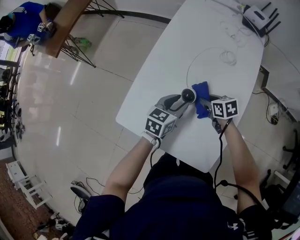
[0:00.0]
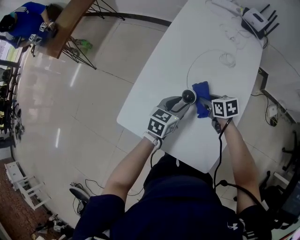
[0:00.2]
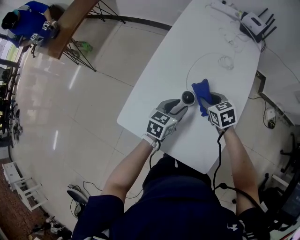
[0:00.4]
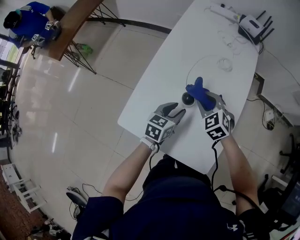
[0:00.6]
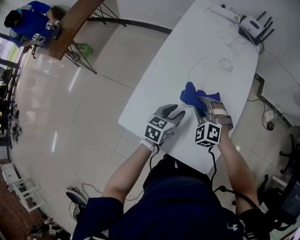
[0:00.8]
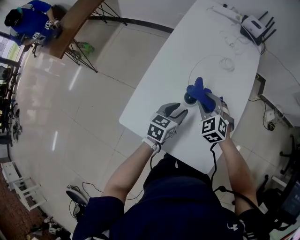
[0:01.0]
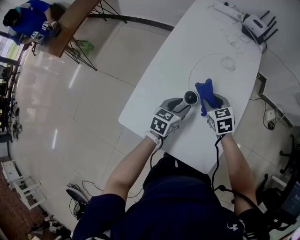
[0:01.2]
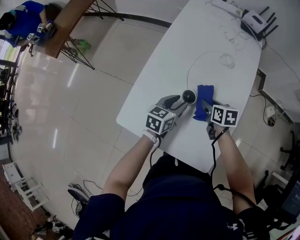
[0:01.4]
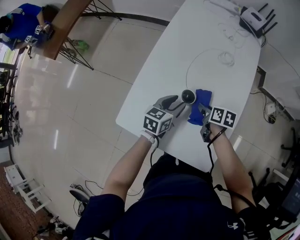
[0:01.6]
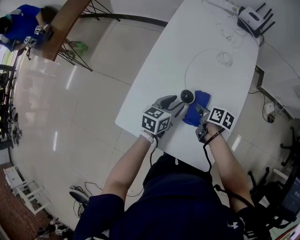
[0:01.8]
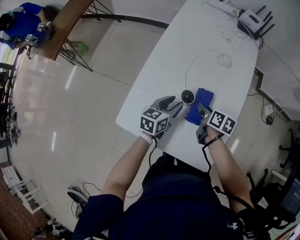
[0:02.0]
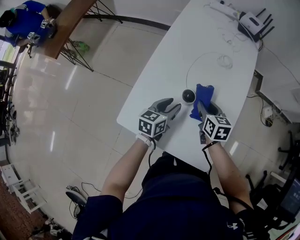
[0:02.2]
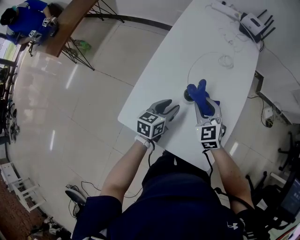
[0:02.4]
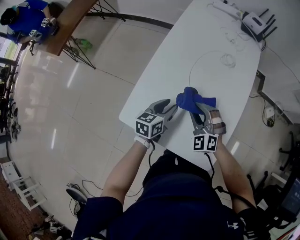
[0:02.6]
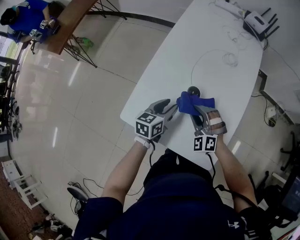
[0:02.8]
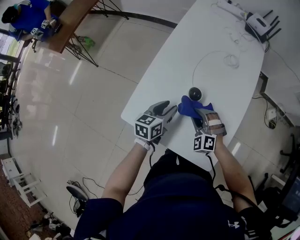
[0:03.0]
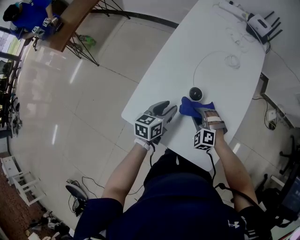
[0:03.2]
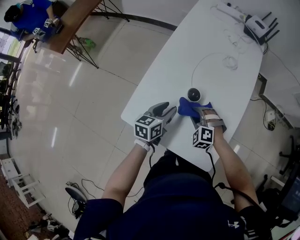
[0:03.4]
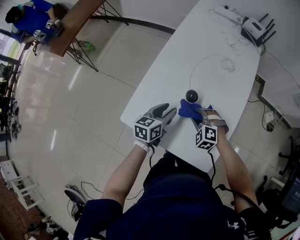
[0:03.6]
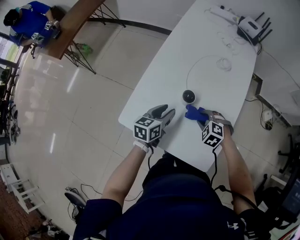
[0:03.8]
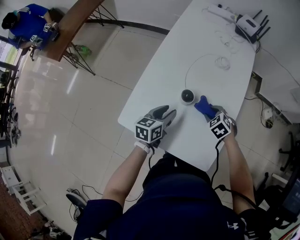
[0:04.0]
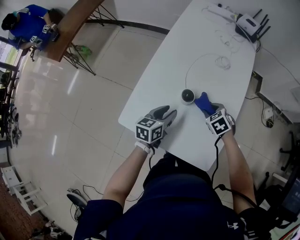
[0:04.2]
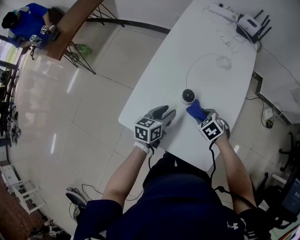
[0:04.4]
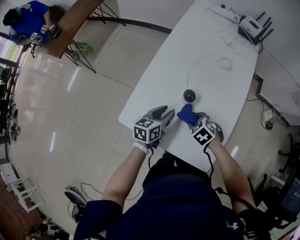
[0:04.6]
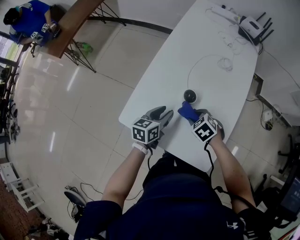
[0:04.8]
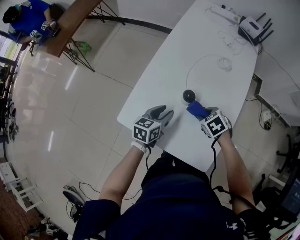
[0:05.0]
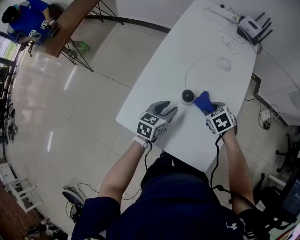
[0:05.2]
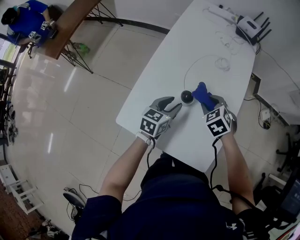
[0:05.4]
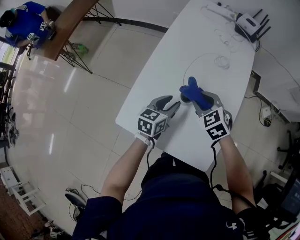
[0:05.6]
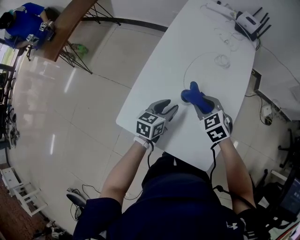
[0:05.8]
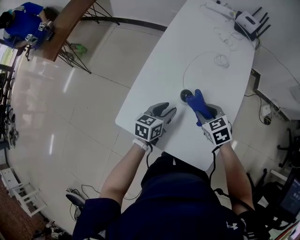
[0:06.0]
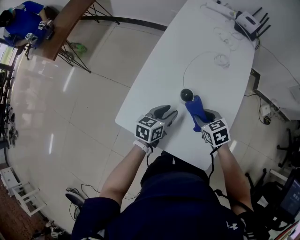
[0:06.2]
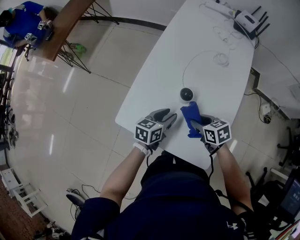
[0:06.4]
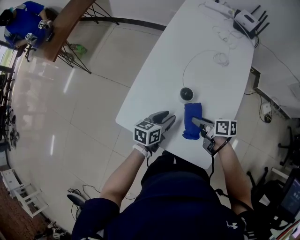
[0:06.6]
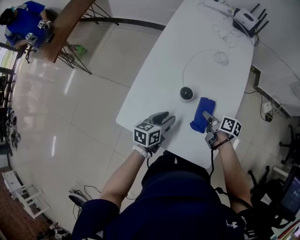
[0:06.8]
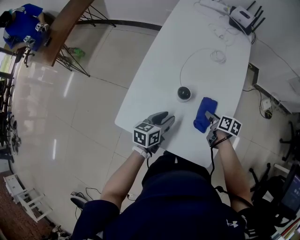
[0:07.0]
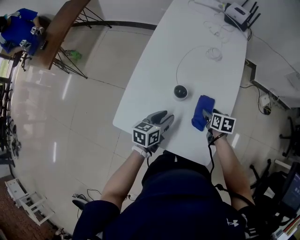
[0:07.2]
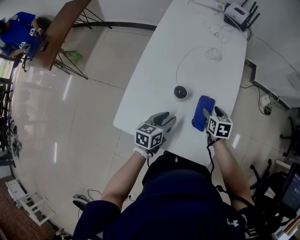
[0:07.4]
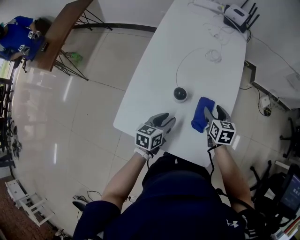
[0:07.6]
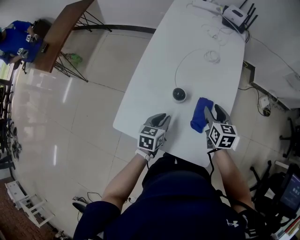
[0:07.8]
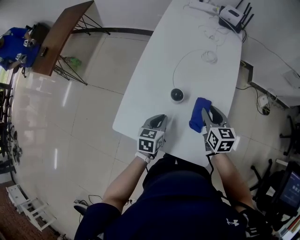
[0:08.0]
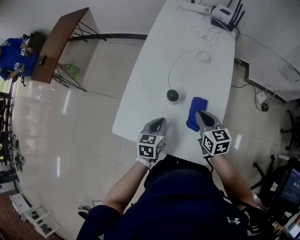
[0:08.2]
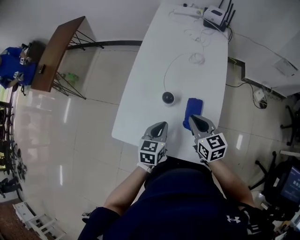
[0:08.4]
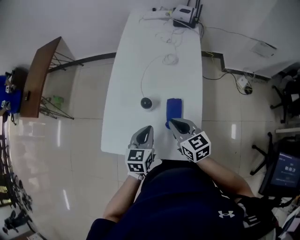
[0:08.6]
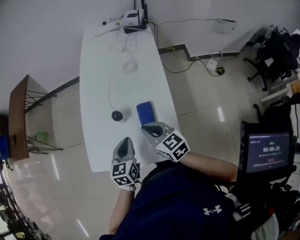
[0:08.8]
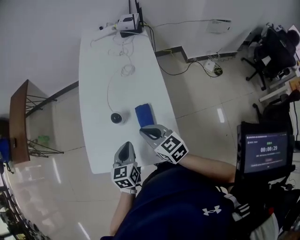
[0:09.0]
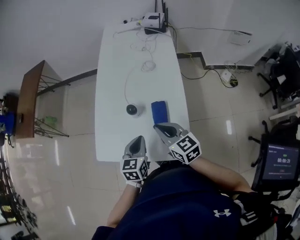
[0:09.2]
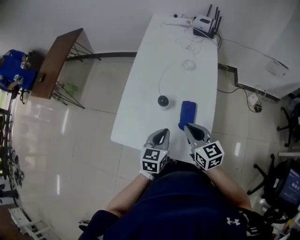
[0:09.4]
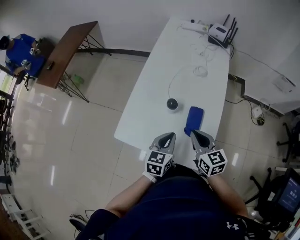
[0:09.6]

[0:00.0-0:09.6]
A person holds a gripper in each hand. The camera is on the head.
0:00.0 to 0:01.6: The right gripper moves about 10 cm upward and comes back, and rotates roughly 30 degrees.
0:01.6 to 0:03.2: The right gripper travels to the left and backward by about 10 cm, travels upward and back again, some 10 cm each way, and twists some 110 degrees counterclockwise, seen from behind. Meanwhile the left gripper goes some 5 cm to the left.
0:03.2 to 0:04.8: The right gripper reaches roughly 10 cm to the right, then returns, and swivels some 40 degrees.
0:04.8 to 0:06.4: The right gripper moves some 10 cm upward and comes back, and swivels approximately 40 degrees.
0:06.4 to 0:08.0: The right gripper changes place by approximately 10 cm, turns by roughly 40 degrees, and opens, then closes once more; the left gripper closes its fingers.
0:08.0 to 0:09.6: The left gripper travels upward, backward and to the right by roughly 10 cm, while the right gripper moves backward and upward, some 10 cm, and closes its fingers.

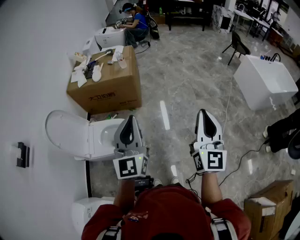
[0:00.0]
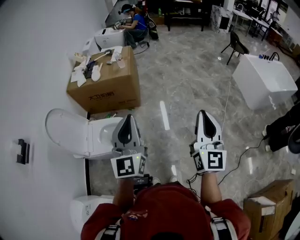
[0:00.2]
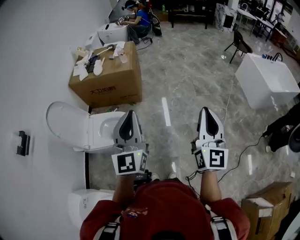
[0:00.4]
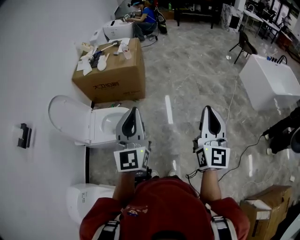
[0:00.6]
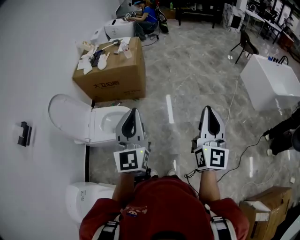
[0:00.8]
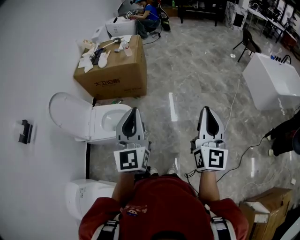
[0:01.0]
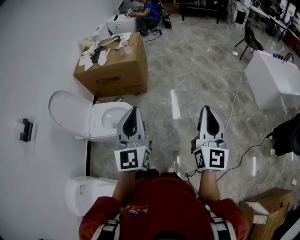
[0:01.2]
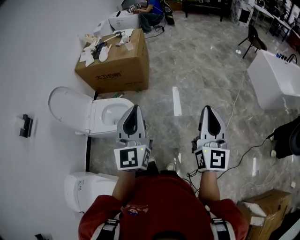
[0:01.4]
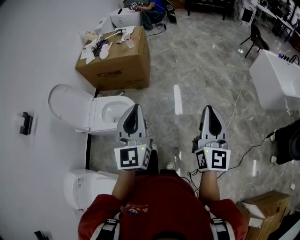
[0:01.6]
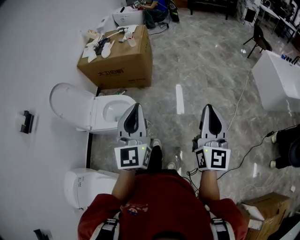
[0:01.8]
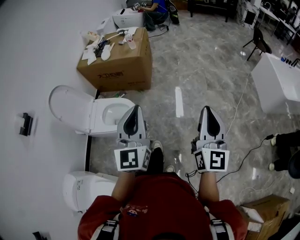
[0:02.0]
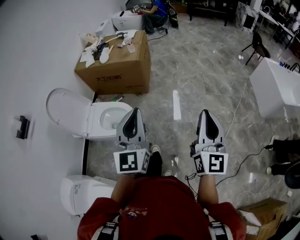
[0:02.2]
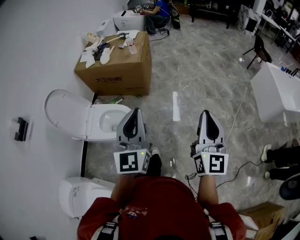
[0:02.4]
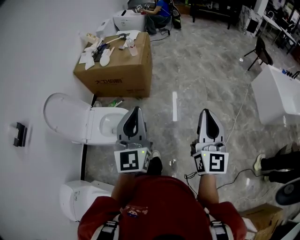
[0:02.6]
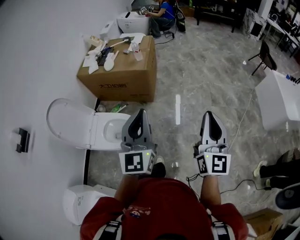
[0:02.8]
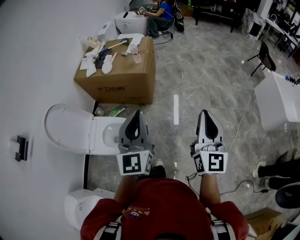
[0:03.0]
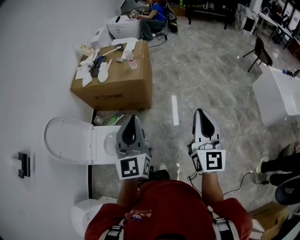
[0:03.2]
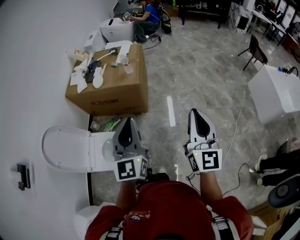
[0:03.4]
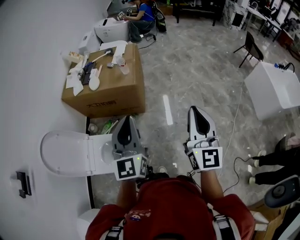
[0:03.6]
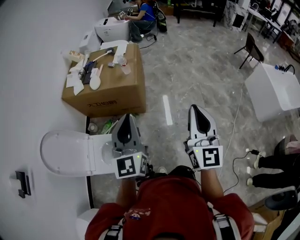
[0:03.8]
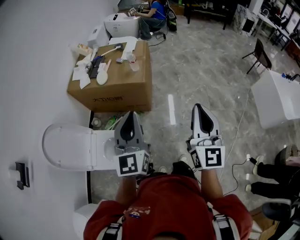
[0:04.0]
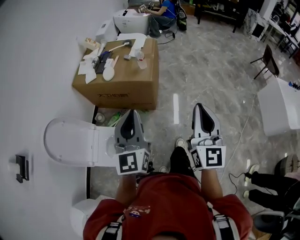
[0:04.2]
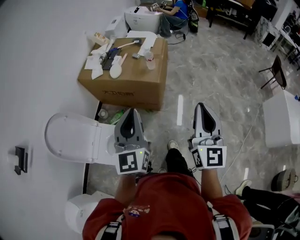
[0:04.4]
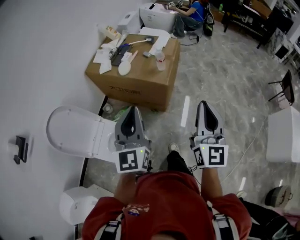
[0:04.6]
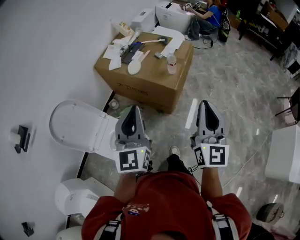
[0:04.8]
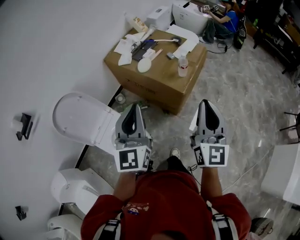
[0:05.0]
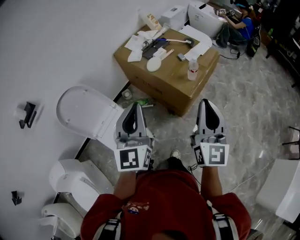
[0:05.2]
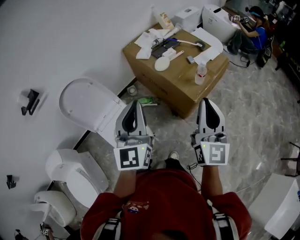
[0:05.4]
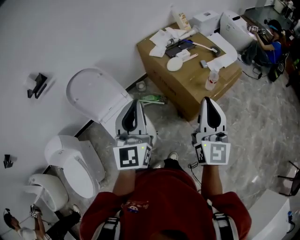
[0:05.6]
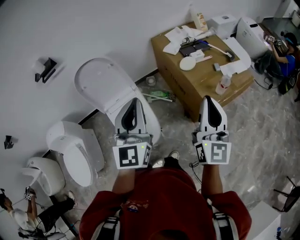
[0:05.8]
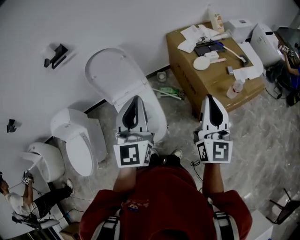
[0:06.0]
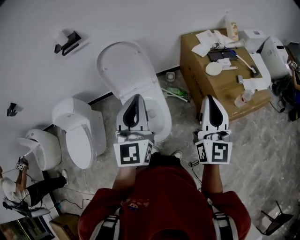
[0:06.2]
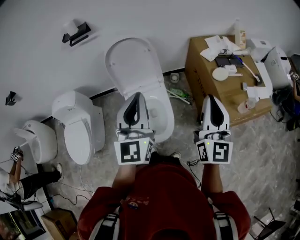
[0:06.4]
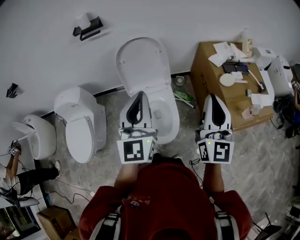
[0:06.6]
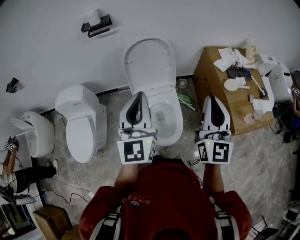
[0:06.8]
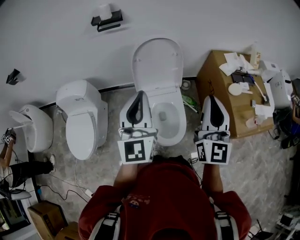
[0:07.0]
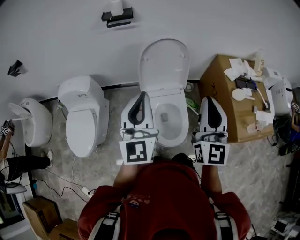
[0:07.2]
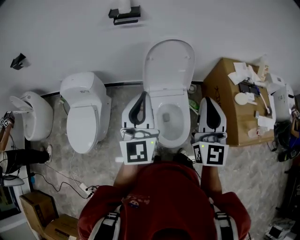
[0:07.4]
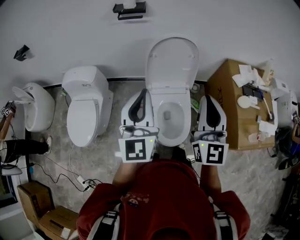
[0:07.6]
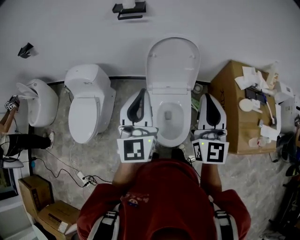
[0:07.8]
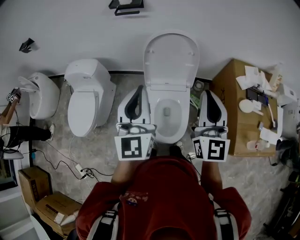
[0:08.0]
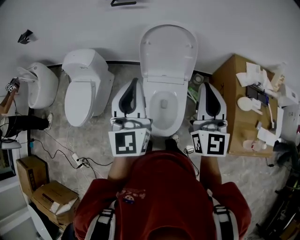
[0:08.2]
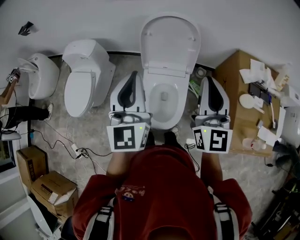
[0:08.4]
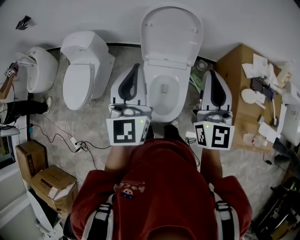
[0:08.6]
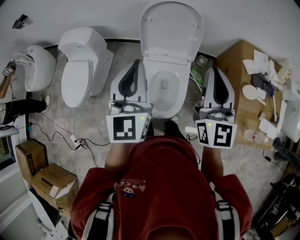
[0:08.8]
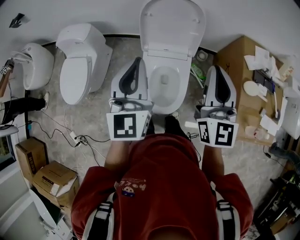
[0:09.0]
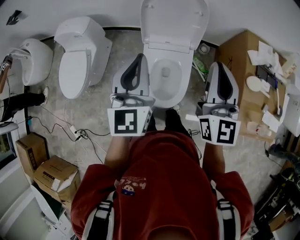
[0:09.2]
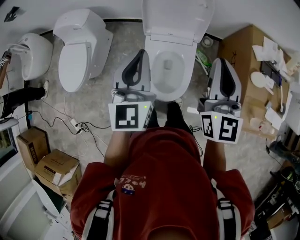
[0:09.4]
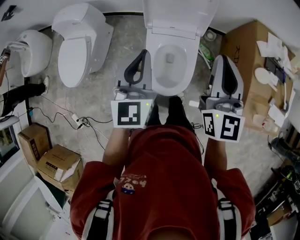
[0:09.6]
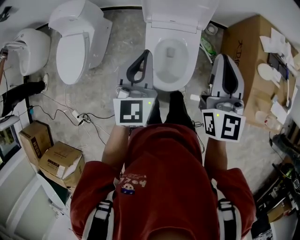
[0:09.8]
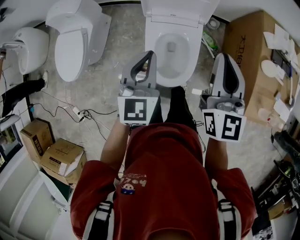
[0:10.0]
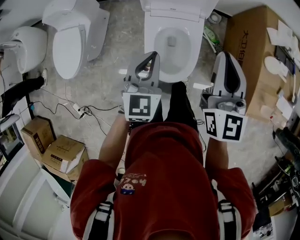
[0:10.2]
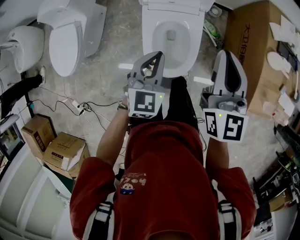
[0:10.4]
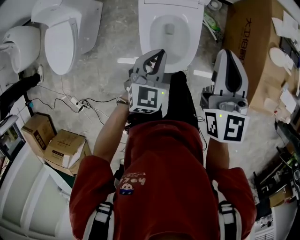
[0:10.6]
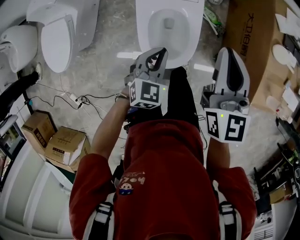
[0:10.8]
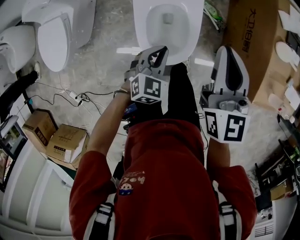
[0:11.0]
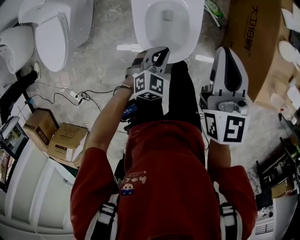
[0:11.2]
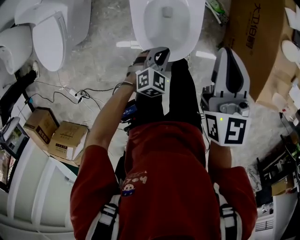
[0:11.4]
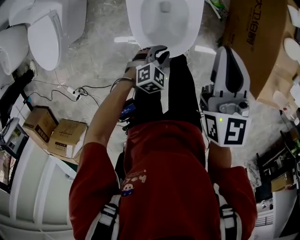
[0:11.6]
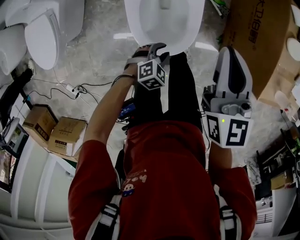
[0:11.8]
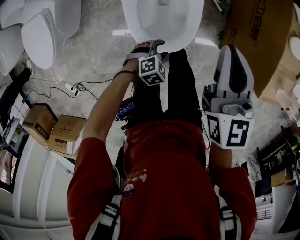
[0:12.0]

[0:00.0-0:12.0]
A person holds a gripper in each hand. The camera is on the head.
0:00.0 to 0:01.6: Both grippers move to the right, about 10 cm.
0:01.6 to 0:03.0: Both grippers move forward and to the left, about 25 cm.
0:03.0 to 0:04.4: Both grippers move forward and to the left, some 20 cm.
0:04.4 to 0:06.0: The right gripper moves roughly 30 cm, and rotates approximately 50 degrees, while the left gripper shifts by some 15 cm, and turns by approximately 50 degrees.
0:06.0 to 0:07.6: The right gripper moves roughly 35 cm, and changes its angle by approximately 30 degrees. The left gripper changes place by about 30 cm, and swivels approximately 20 degrees.
0:07.6 to 0:09.0: Both grippers travel together to the right, roughly 10 cm.
0:09.0 to 0:10.4: The right gripper shifts approximately 15 cm downward. The left gripper shifts about 25 cm downward, and turns by roughly 40 degrees.
0:10.4 to 0:12.0: The left gripper moves downward, some 35 cm, tips its fingers downward by approximately 40 degrees, and opens. Meanwhile the right gripper is displaced downward by some 15 cm.

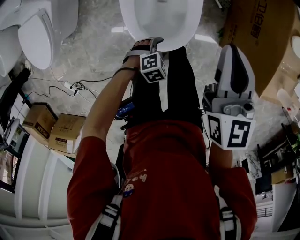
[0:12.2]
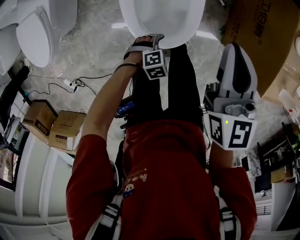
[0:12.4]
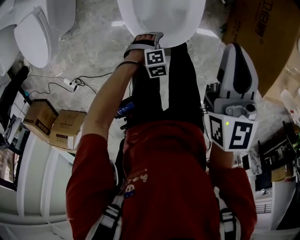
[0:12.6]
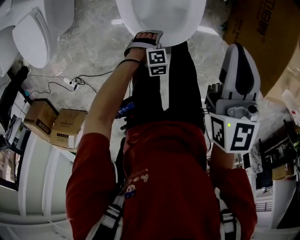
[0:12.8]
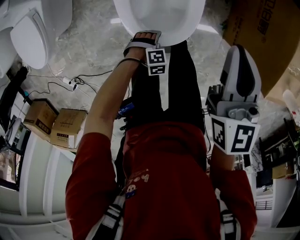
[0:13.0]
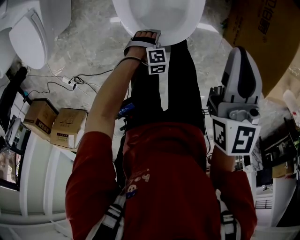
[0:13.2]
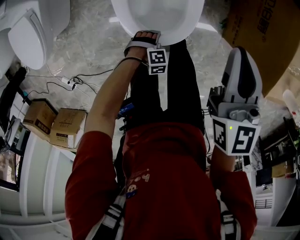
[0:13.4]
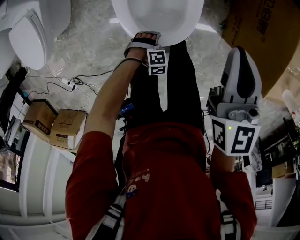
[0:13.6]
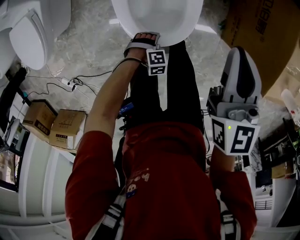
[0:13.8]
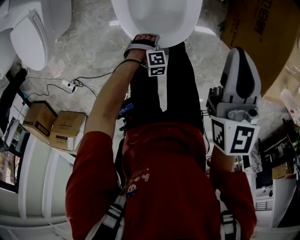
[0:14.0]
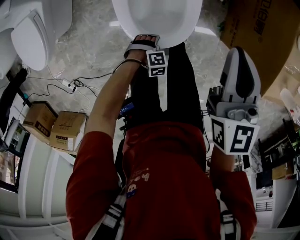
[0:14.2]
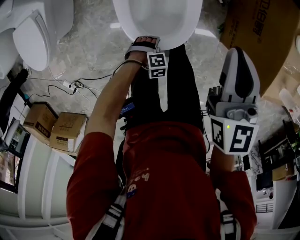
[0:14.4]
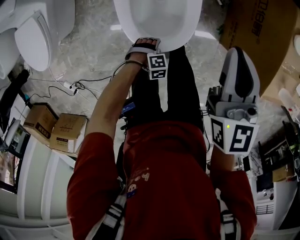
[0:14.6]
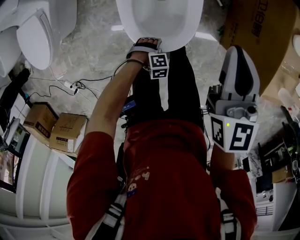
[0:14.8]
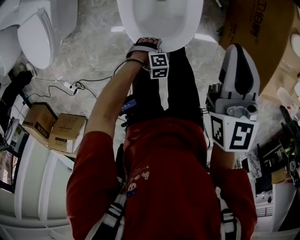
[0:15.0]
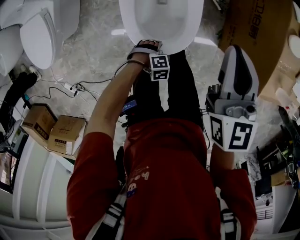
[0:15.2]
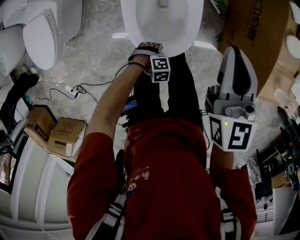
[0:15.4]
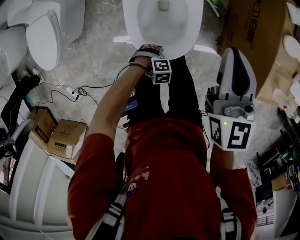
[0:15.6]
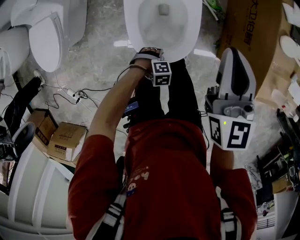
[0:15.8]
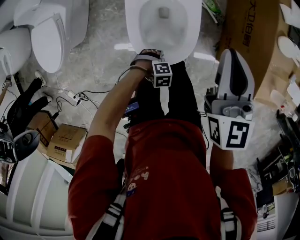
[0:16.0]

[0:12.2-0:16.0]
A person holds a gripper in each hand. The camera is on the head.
0:12.2 to 0:13.4: The left gripper is displaced downward by approximately 10 cm, and turns by approximately 30 degrees, while the right gripper ends up some 5 cm from where it was.
0:13.4 to 0:14.8: The grippers move only a little.
0:14.8 to 0:16.0: The grippers both shift upward by some 5 cm.
